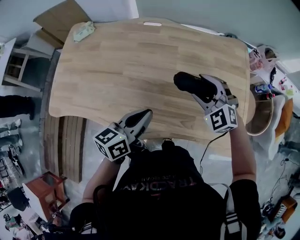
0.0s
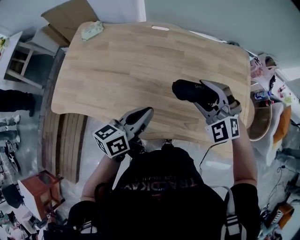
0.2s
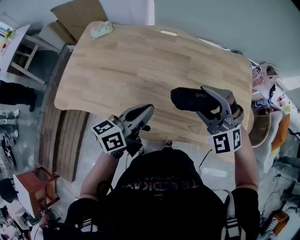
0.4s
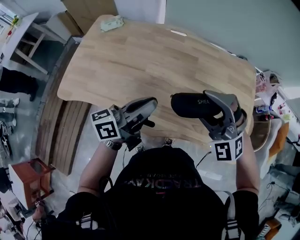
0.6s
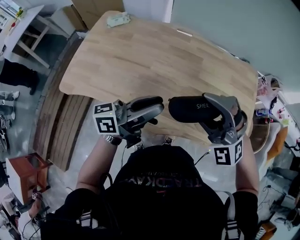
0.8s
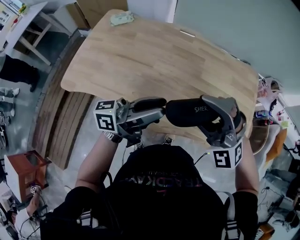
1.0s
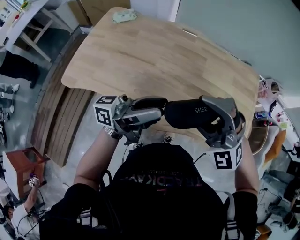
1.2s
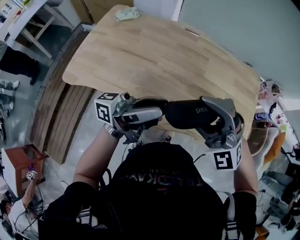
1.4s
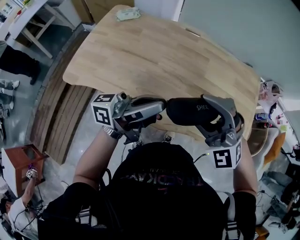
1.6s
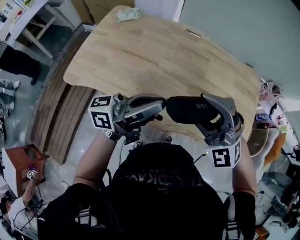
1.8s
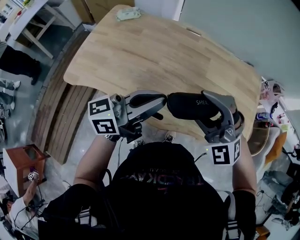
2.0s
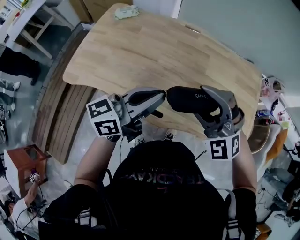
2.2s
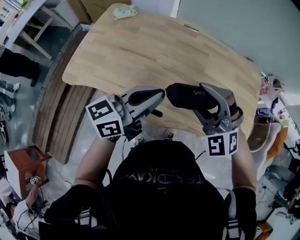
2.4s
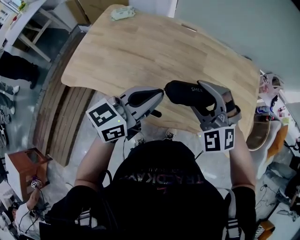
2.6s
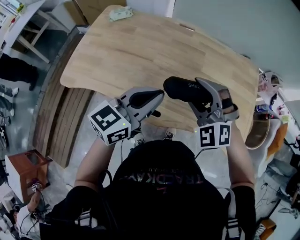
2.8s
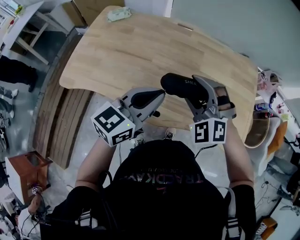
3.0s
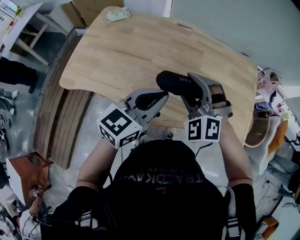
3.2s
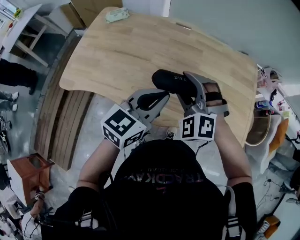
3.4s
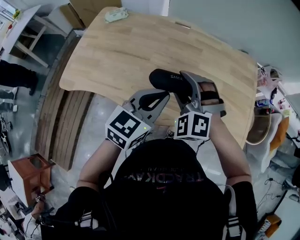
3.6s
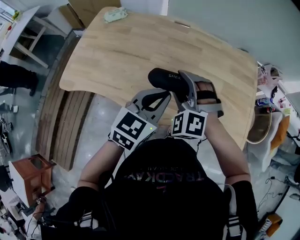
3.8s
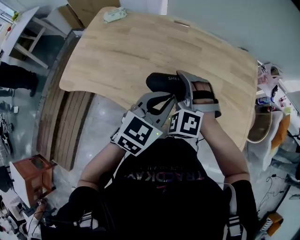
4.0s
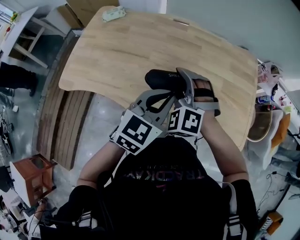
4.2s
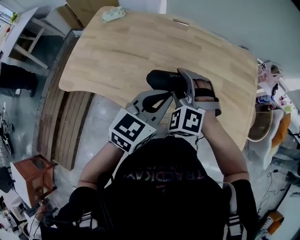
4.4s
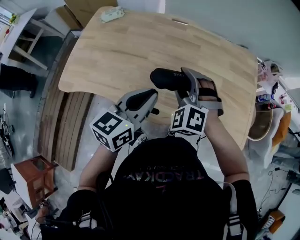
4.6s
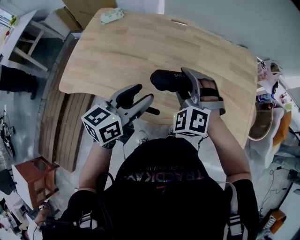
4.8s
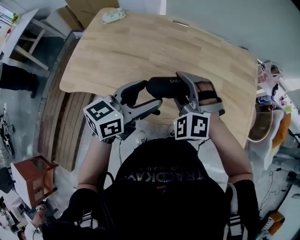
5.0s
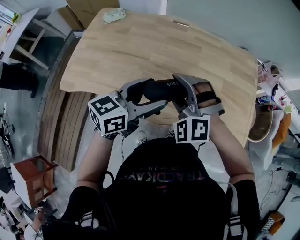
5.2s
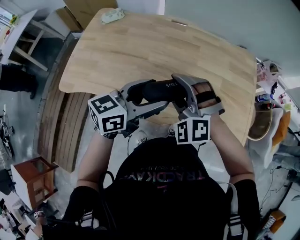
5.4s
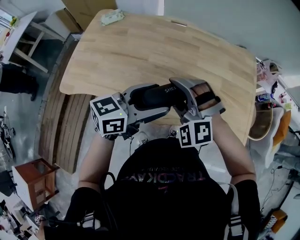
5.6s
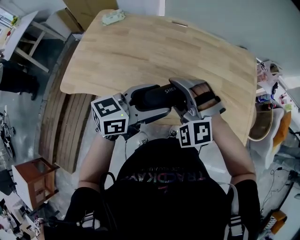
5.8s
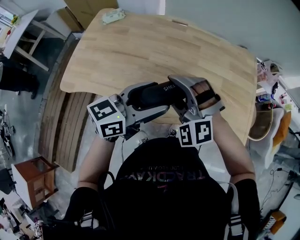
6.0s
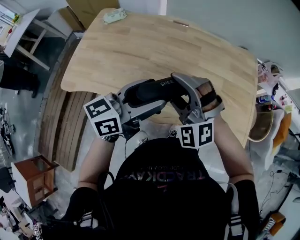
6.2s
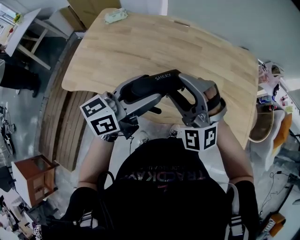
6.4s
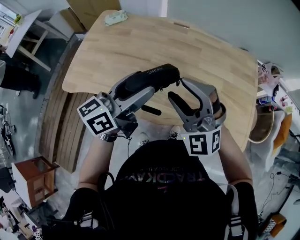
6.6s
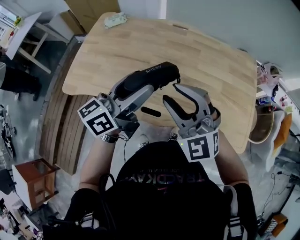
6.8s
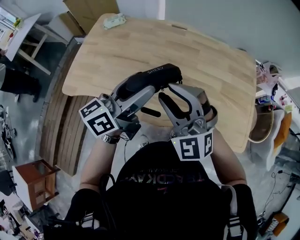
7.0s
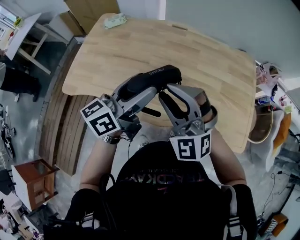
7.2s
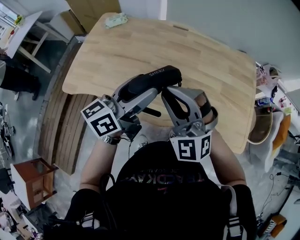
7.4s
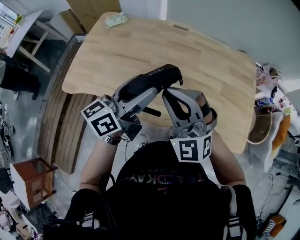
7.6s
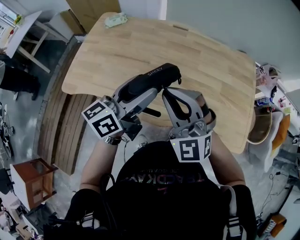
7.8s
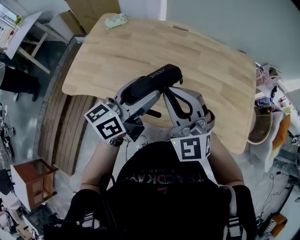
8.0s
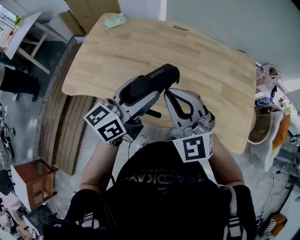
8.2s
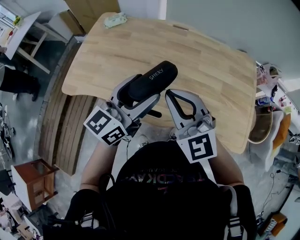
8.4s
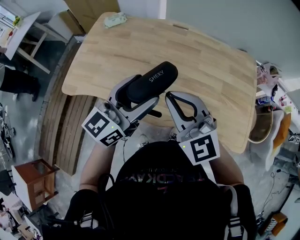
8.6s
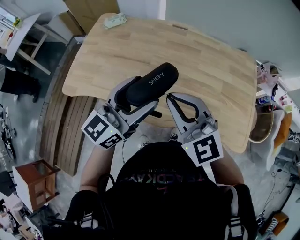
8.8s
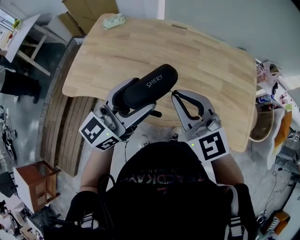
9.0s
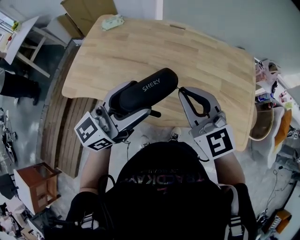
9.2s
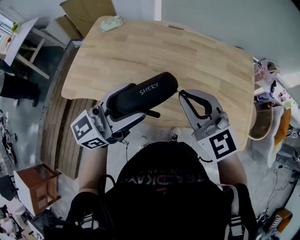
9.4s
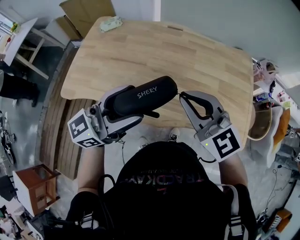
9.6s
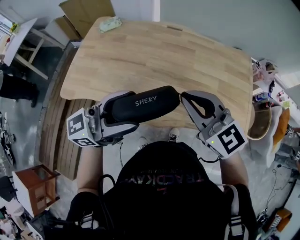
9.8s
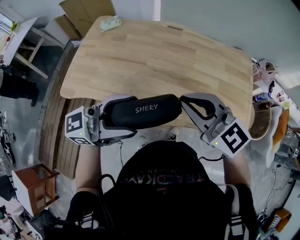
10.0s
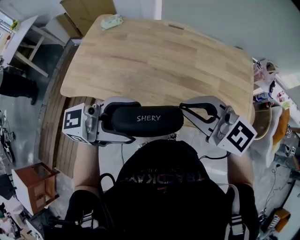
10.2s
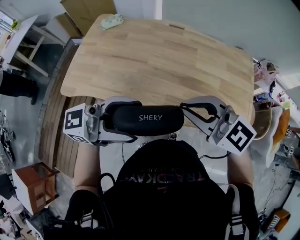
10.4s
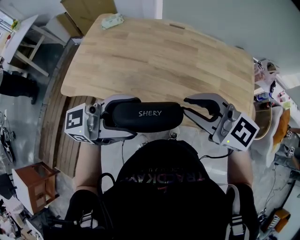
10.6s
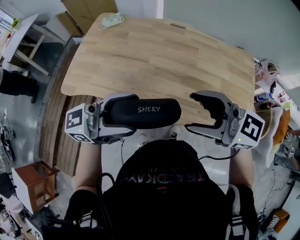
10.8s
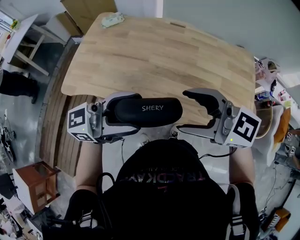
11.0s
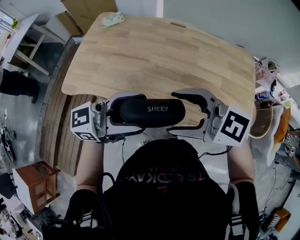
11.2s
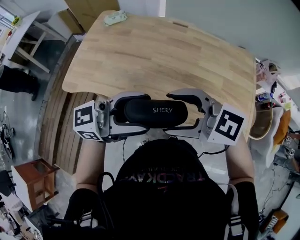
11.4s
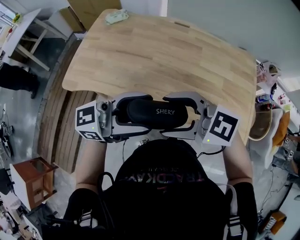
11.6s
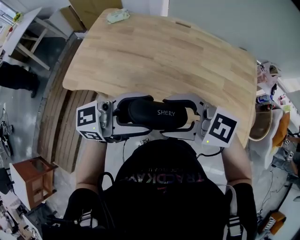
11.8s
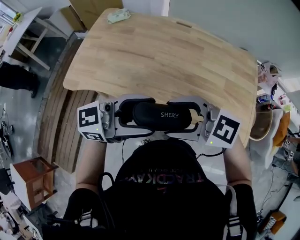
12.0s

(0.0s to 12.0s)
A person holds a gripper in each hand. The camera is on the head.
0.0s - 1.6s: The right gripper is displaced backward, to the left and upward by about 25 cm, and swivels about 30 degrees; the left gripper shifts approximately 15 cm upward, to the left and backward, angles its fingers upward, by roughly 40 degrees, and opens and closes again.
1.6s - 3.0s: The left gripper angles its fingers downward, by approximately 40 degrees. The right gripper heads downward and forward, covering some 10 cm, and changes its angle by some 20 degrees.
4.4s - 6.0s: The right gripper is displaced backward by roughly 5 cm, and rotates some 20 degrees, while the left gripper swivels approximately 20 degrees, and opens.
6.0s - 7.6s: The left gripper travels to the left by roughly 5 cm, and swivels some 20 degrees. The right gripper travels upward by roughly 5 cm, turns by about 30 degrees, and closes up.
7.6s - 9.0s: The left gripper changes its angle by approximately 30 degrees; the right gripper rotates roughly 40 degrees.
9.0s - 10.4s: The right gripper rotates about 30 degrees; the left gripper shifts by some 10 cm, and swivels about 40 degrees.
10.4s - 12.0s: The right gripper is displaced downward by some 5 cm, changes its angle by approximately 30 degrees, and opens up.

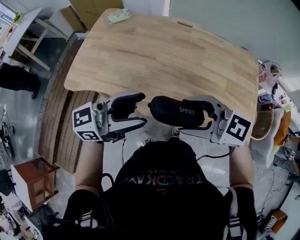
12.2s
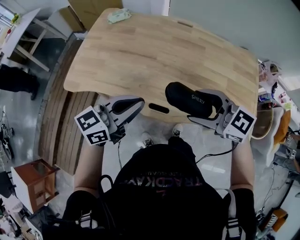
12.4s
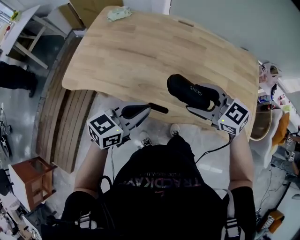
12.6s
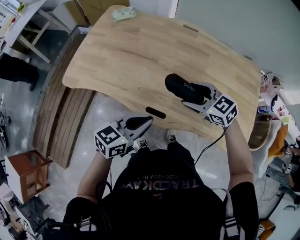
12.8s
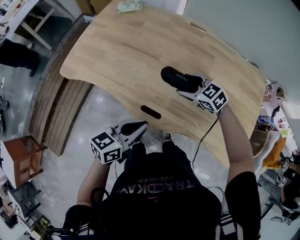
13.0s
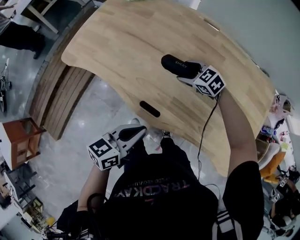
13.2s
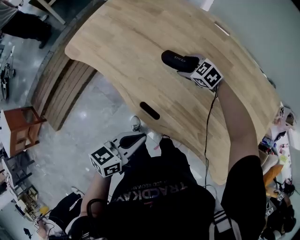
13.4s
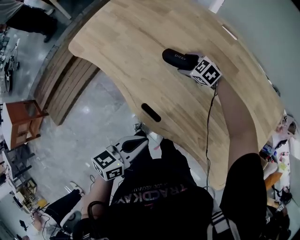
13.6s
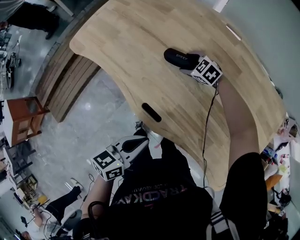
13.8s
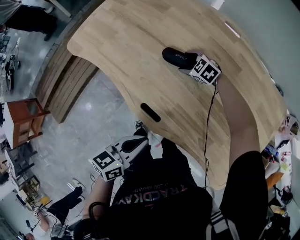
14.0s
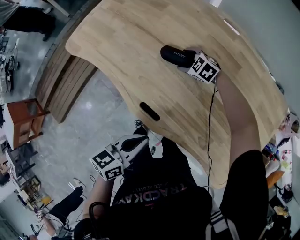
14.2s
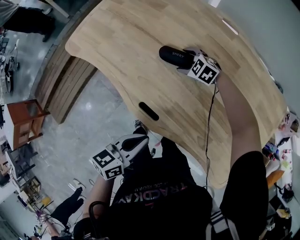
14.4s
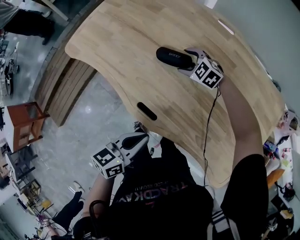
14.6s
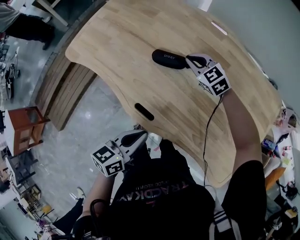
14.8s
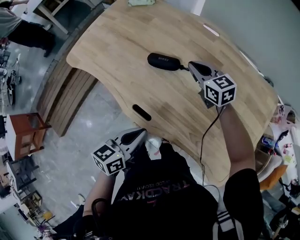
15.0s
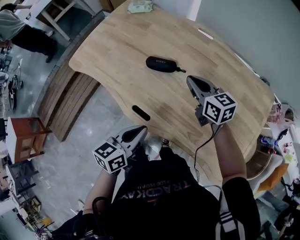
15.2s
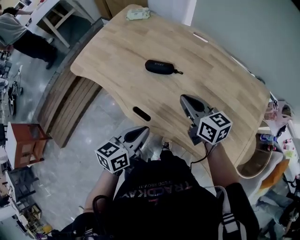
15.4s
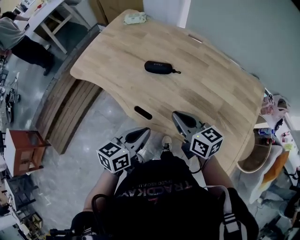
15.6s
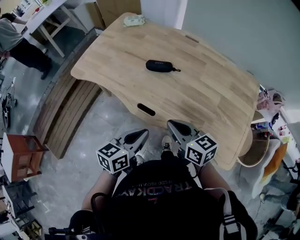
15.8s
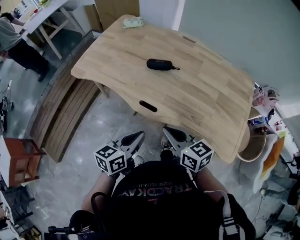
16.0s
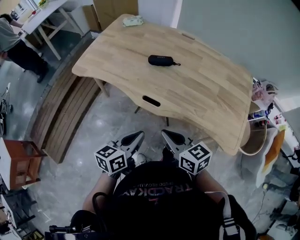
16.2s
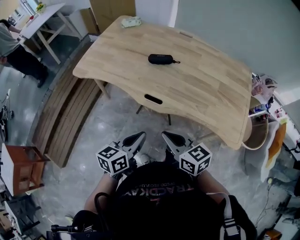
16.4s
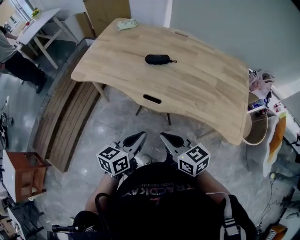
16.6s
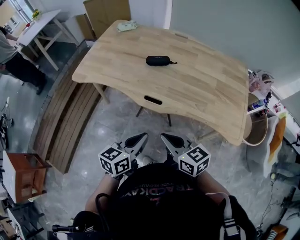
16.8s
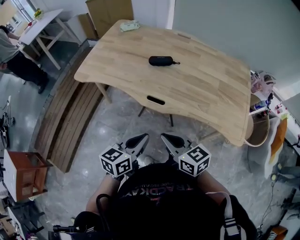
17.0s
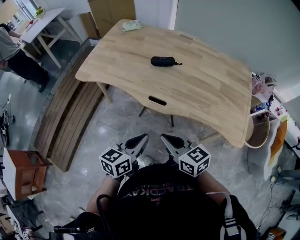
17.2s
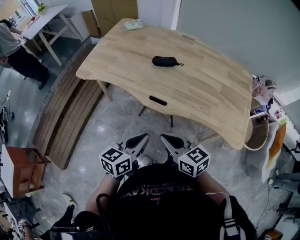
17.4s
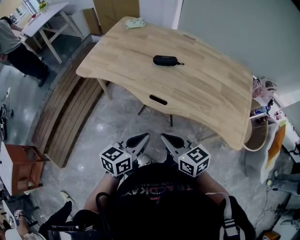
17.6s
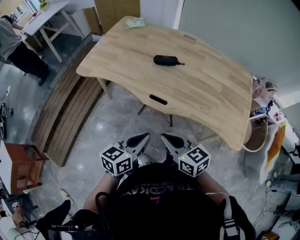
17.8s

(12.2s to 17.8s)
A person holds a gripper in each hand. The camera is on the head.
12.2s - 13.6s: The left gripper travels downward by some 20 cm, angles its fingers downward, by approximately 40 degrees, and closes its fingers; the right gripper travels downward by roughly 30 cm, and tilts its fingers roughly 40 degrees downward.
13.6s - 15.0s: The right gripper goes some 15 cm upward and to the right, rotates about 40 degrees, and closes its fingers.
15.0s - 16.4s: The right gripper travels backward by approximately 40 cm, while the left gripper travels backward and to the left by approximately 20 cm.
16.4s - 17.8s: The grippers move only a little.

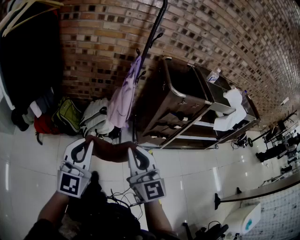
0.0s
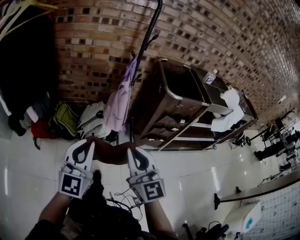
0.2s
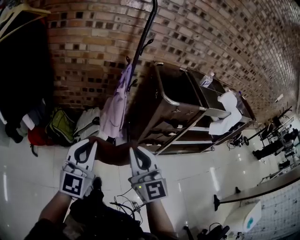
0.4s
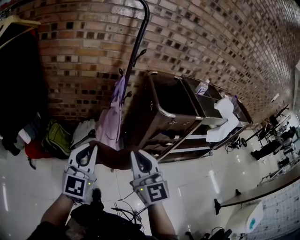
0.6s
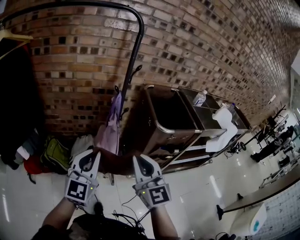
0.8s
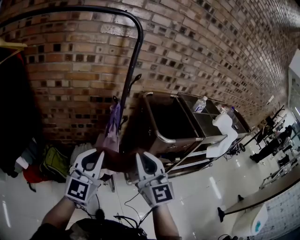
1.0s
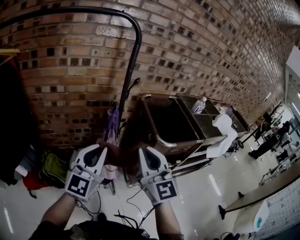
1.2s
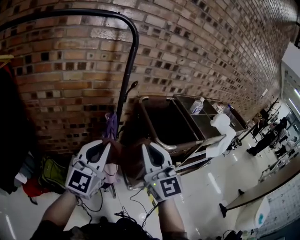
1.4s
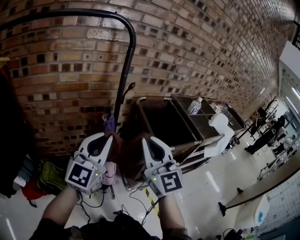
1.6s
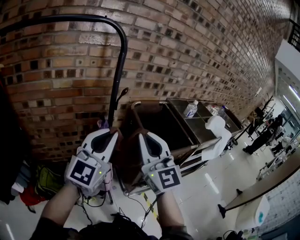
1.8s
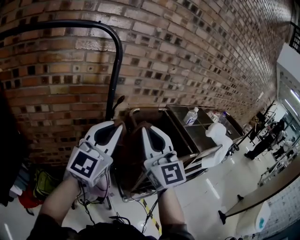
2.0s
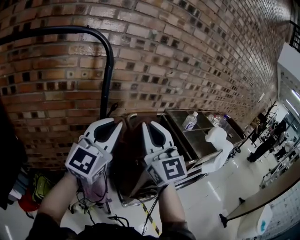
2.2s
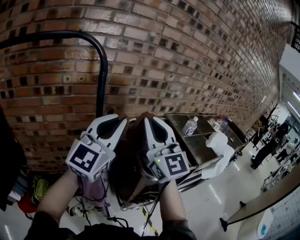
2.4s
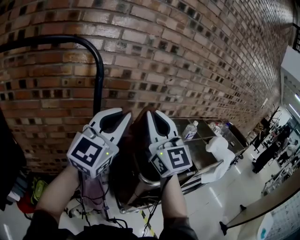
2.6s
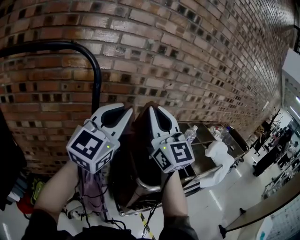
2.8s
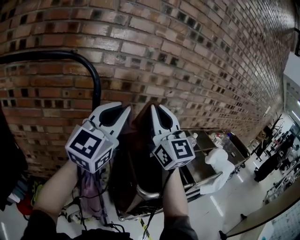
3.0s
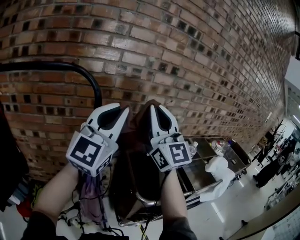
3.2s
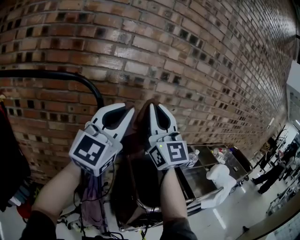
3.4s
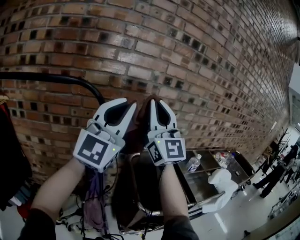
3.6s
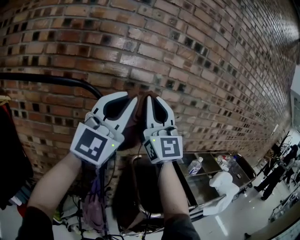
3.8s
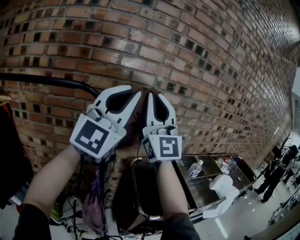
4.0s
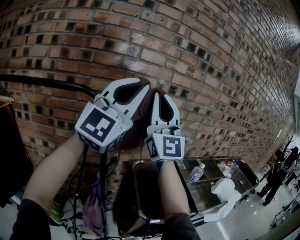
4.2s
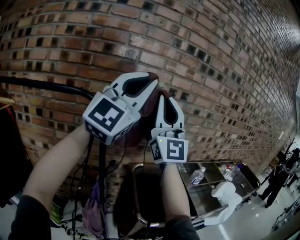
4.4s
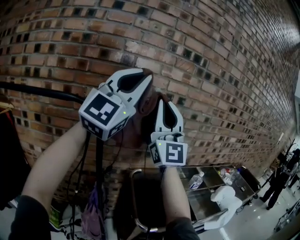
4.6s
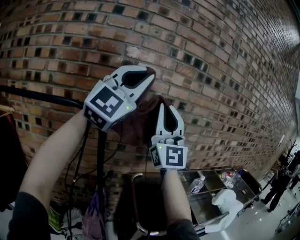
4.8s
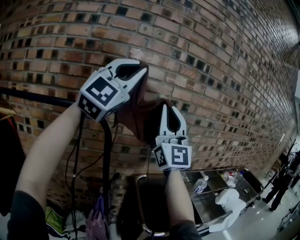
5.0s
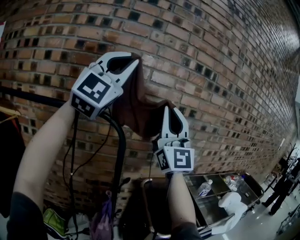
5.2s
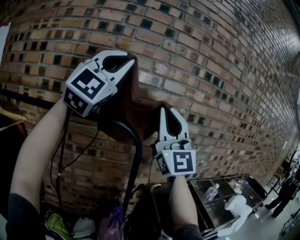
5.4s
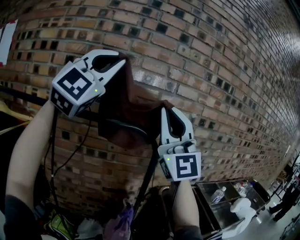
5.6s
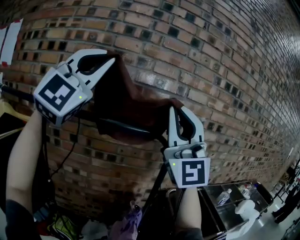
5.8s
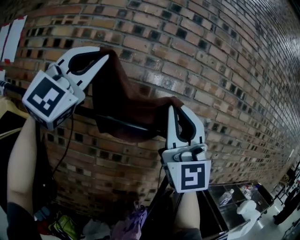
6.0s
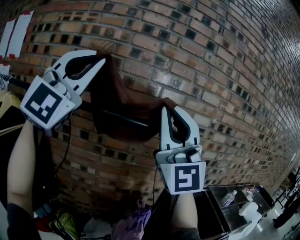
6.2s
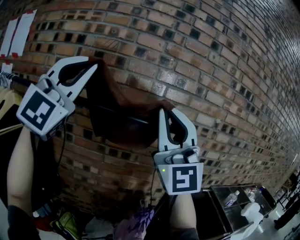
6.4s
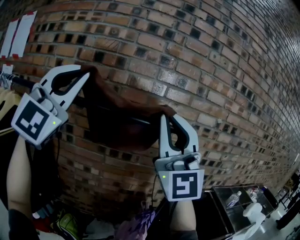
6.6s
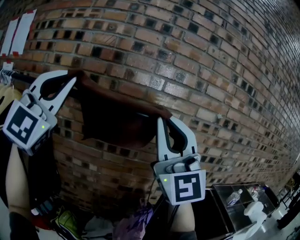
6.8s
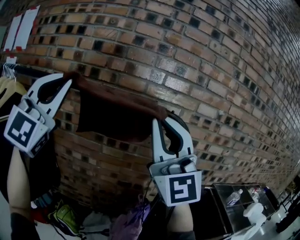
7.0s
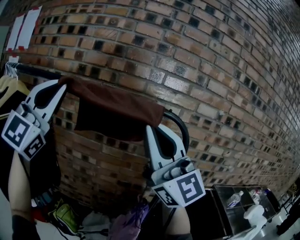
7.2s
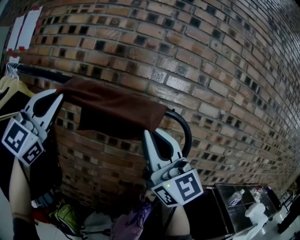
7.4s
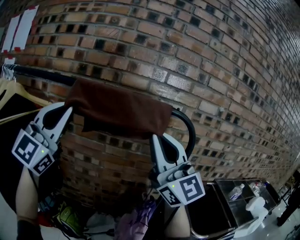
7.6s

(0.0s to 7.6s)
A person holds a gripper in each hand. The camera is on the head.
0.0s - 1.6s: The right gripper goes approximately 40 cm forward and upward, while the left gripper shifts approximately 40 cm forward, and swivels roughly 20 degrees.
1.6s - 3.0s: The right gripper travels forward, upward and to the right by approximately 35 cm, while the left gripper travels upward, forward and to the right by approximately 30 cm.
3.0s - 4.6s: The two grippers go approximately 20 cm upward. The right gripper rotates roughly 30 degrees. Meanwhile the left gripper changes its angle by roughly 30 degrees.
4.6s - 6.0s: The two grippers go roughly 35 cm to the left. The left gripper swivels roughly 30 degrees.
6.0s - 7.6s: Both grippers travel together downward, some 20 cm. The right gripper rotates about 30 degrees; the left gripper rotates some 20 degrees.
